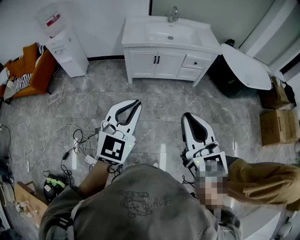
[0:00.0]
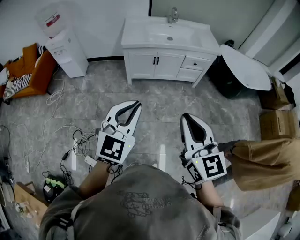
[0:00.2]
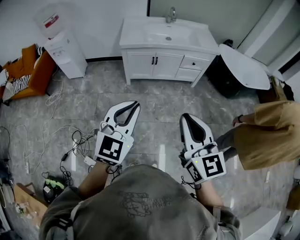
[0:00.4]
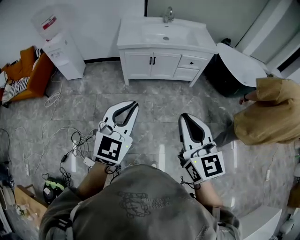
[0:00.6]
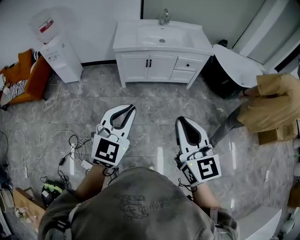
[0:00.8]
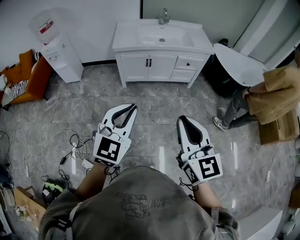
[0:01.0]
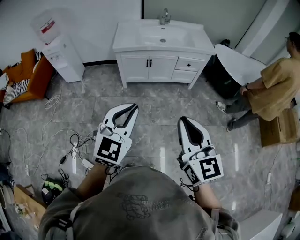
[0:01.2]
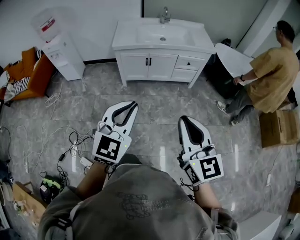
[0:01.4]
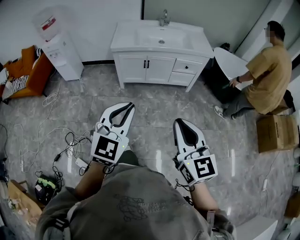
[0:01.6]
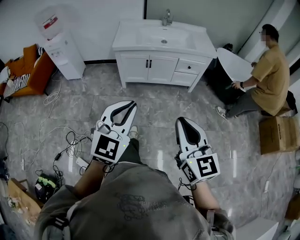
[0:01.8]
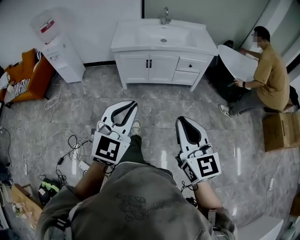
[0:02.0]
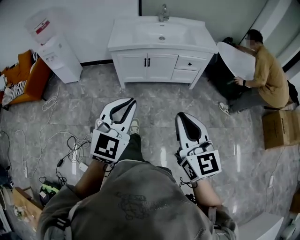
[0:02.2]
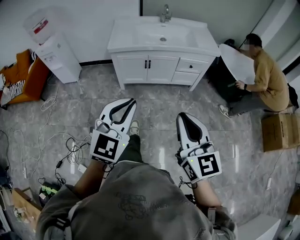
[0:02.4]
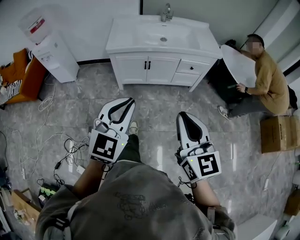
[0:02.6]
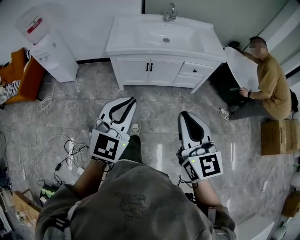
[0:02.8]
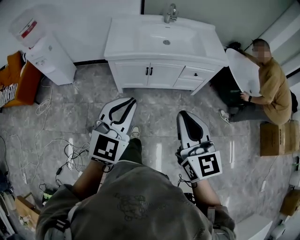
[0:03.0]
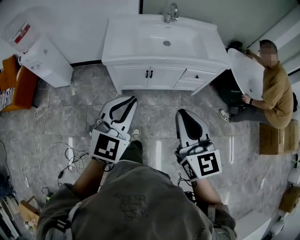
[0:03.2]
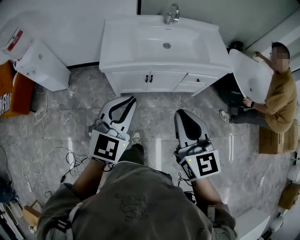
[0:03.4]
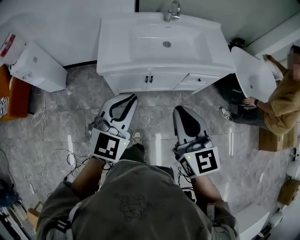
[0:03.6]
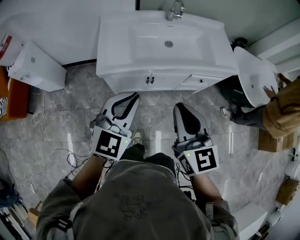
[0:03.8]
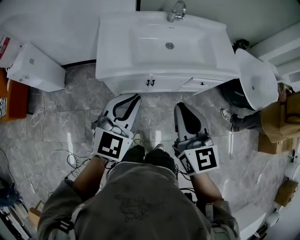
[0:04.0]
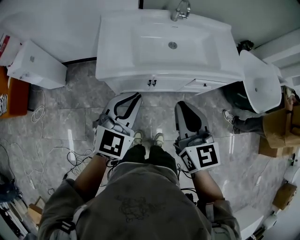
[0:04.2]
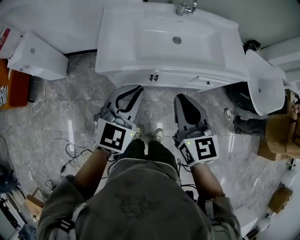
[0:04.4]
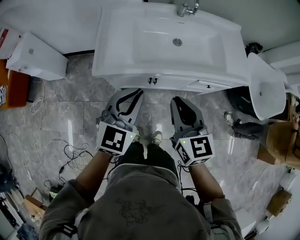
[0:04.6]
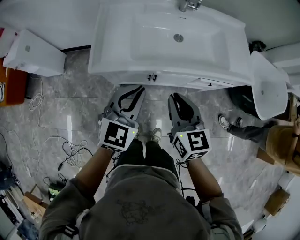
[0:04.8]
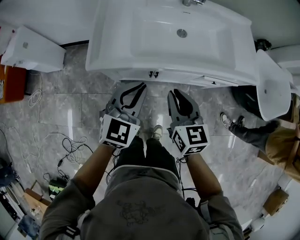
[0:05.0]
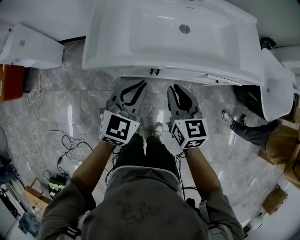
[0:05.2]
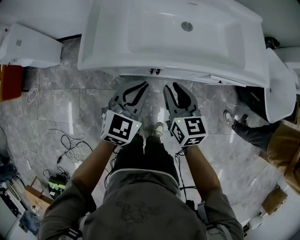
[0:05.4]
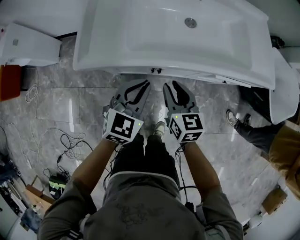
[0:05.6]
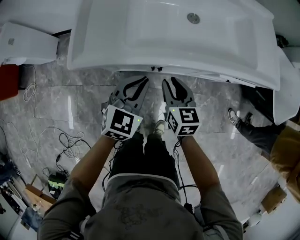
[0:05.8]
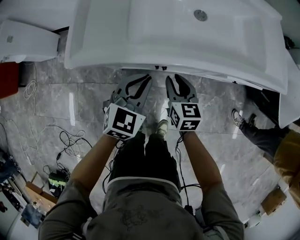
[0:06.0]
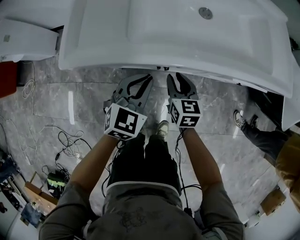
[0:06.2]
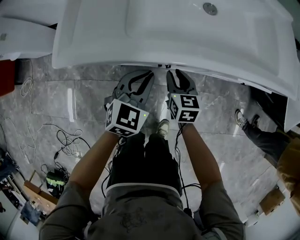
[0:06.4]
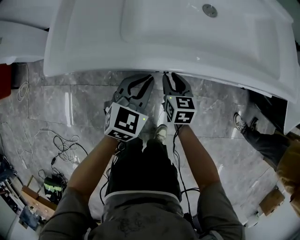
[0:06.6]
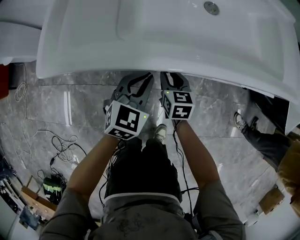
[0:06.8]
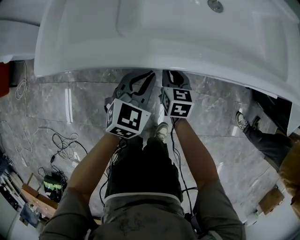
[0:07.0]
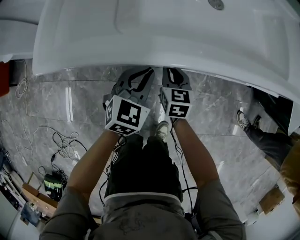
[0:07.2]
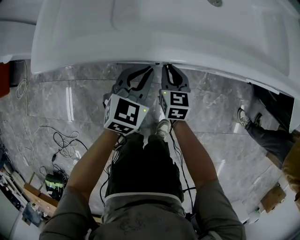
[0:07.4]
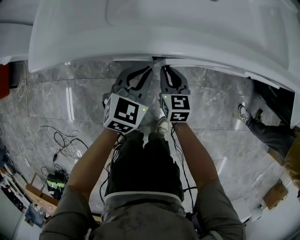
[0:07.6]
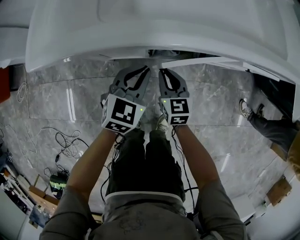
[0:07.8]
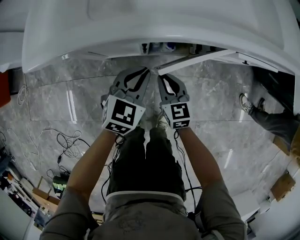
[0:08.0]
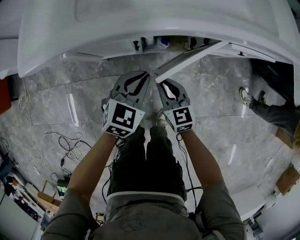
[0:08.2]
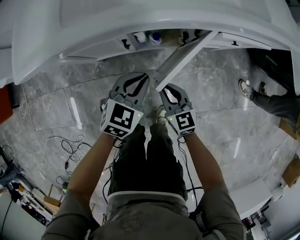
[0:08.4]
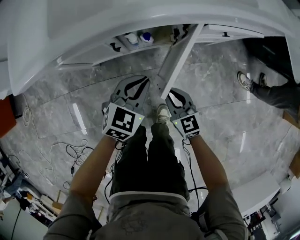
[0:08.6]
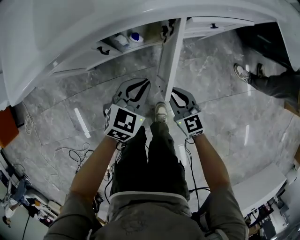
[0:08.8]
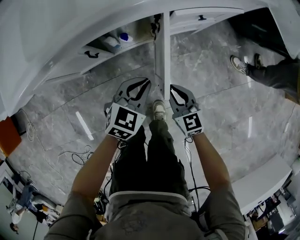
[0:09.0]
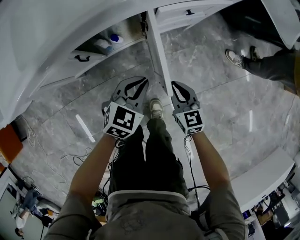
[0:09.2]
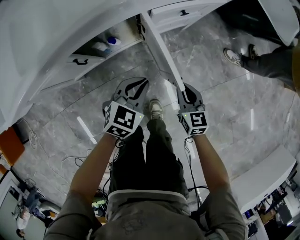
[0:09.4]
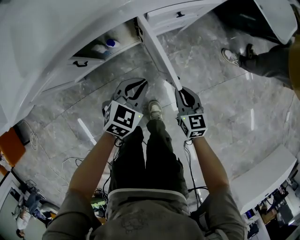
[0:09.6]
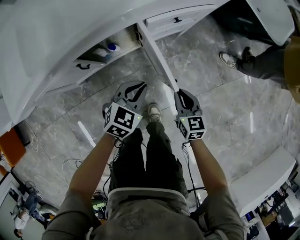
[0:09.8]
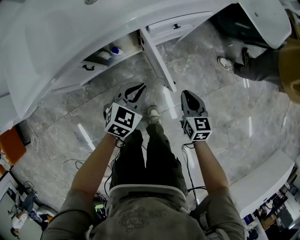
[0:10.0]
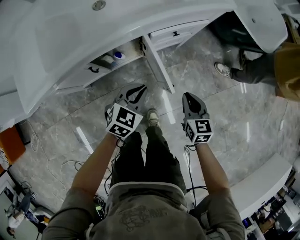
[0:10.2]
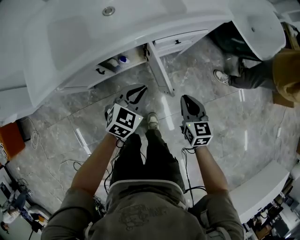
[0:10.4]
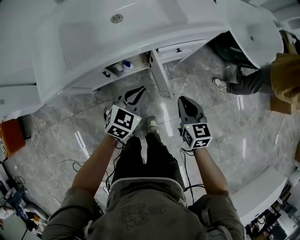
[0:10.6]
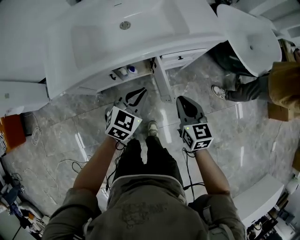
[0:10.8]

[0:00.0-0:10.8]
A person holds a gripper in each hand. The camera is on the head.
0:00.0 to 0:01.6: Both grippers travel together to the right, some 10 cm.
0:01.6 to 0:03.0: Both grippers move forward, roughly 30 cm.
0:03.0 to 0:04.6: Both grippers move forward, some 35 cm.
0:04.6 to 0:06.2: The grippers both shift downward by roughly 35 cm.
0:06.2 to 0:07.8: Both grippers move downward, about 10 cm.
0:07.8 to 0:09.2: The right gripper heads to the right and backward, covering approximately 30 cm. The left gripper travels to the right by about 20 cm, and turns by about 30 degrees.
0:09.2 to 0:10.8: Both grippers move upward, some 30 cm.

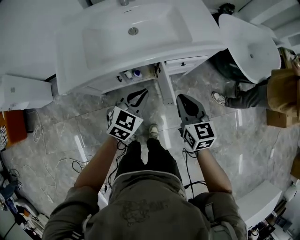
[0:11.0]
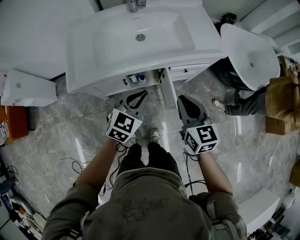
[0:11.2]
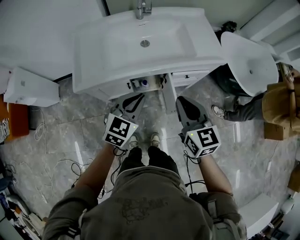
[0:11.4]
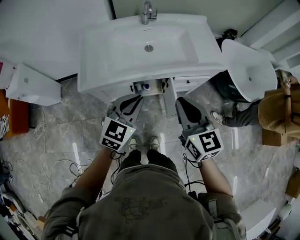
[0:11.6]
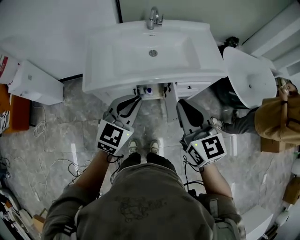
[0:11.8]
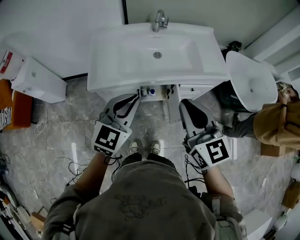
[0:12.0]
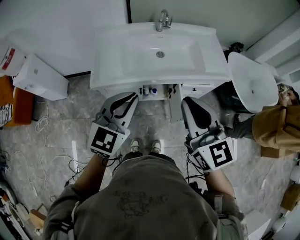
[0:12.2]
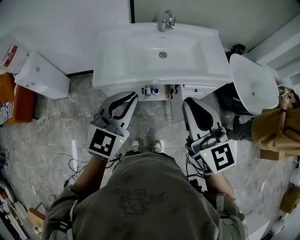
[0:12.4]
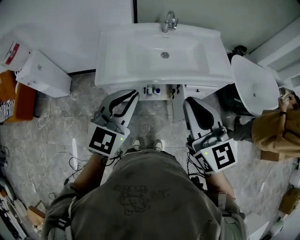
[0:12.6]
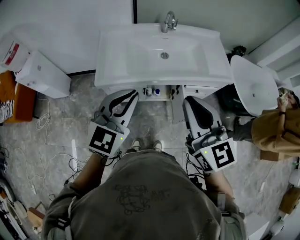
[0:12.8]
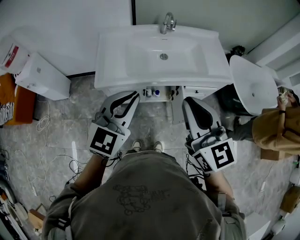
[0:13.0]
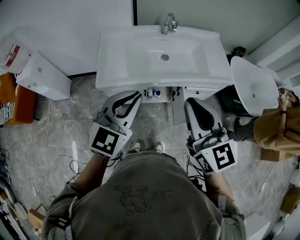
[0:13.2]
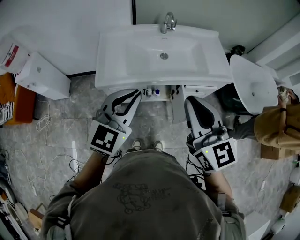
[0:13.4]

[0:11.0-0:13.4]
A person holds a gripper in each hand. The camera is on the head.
0:11.0 to 0:12.2: Both grippers move upward and to the left, about 30 cm. The left gripper changes its angle by some 20 degrees, while the right gripper swivels approximately 30 degrees.
0:12.2 to 0:13.4: The grippers make only small movements.

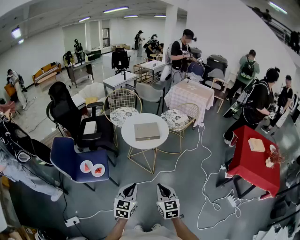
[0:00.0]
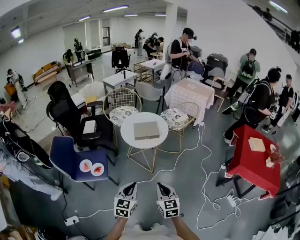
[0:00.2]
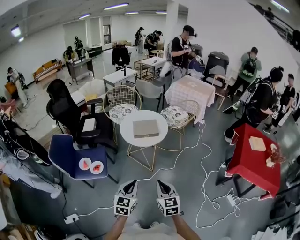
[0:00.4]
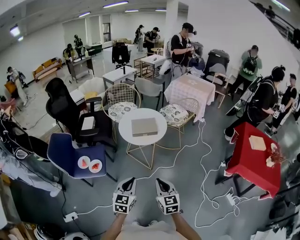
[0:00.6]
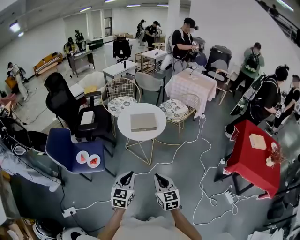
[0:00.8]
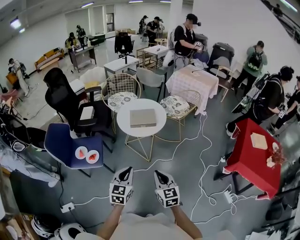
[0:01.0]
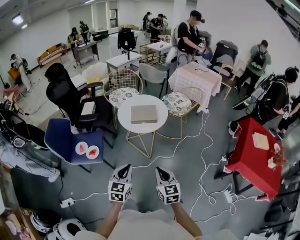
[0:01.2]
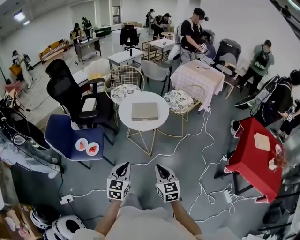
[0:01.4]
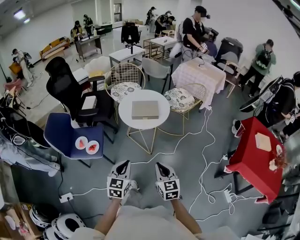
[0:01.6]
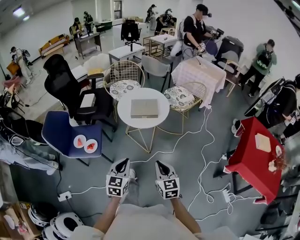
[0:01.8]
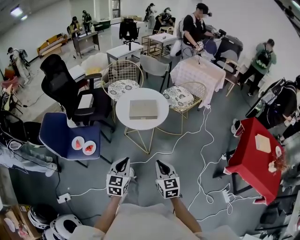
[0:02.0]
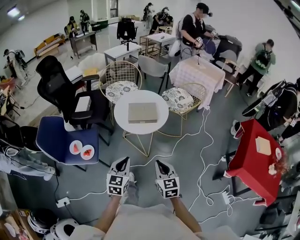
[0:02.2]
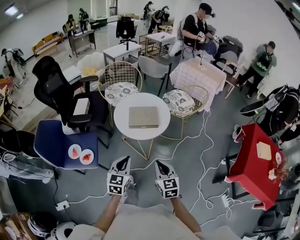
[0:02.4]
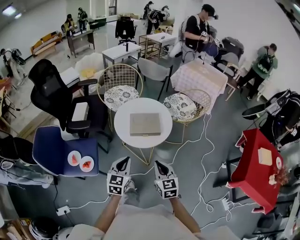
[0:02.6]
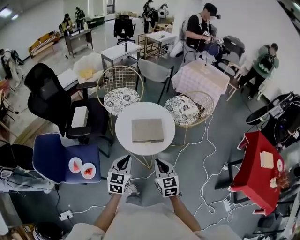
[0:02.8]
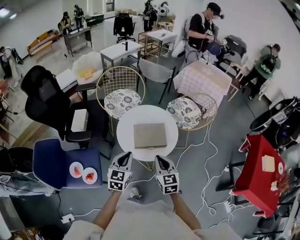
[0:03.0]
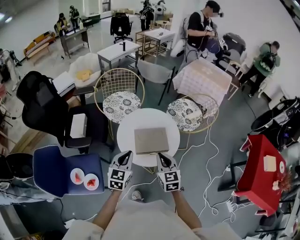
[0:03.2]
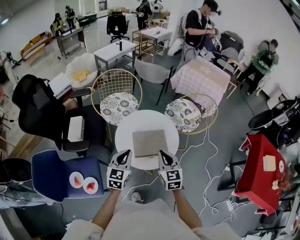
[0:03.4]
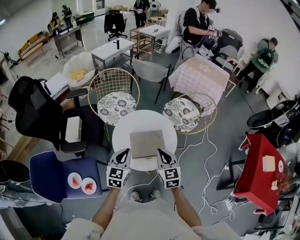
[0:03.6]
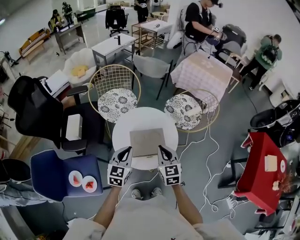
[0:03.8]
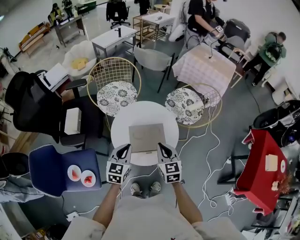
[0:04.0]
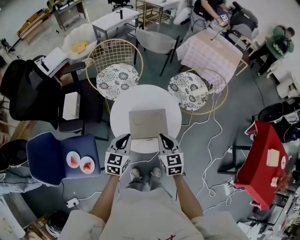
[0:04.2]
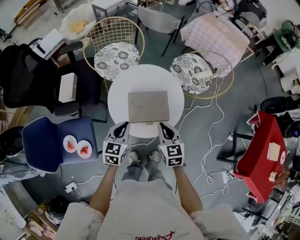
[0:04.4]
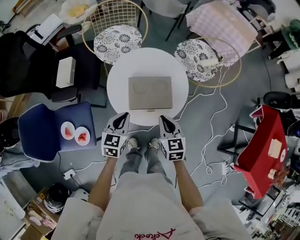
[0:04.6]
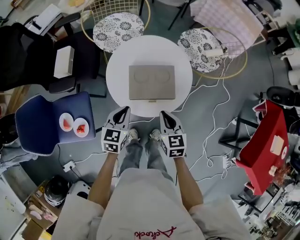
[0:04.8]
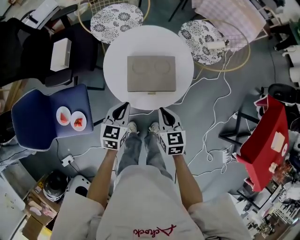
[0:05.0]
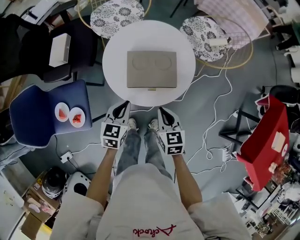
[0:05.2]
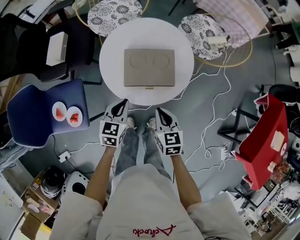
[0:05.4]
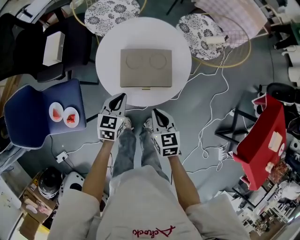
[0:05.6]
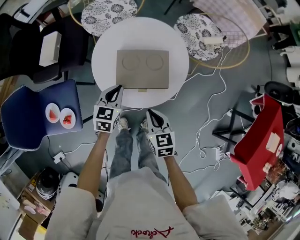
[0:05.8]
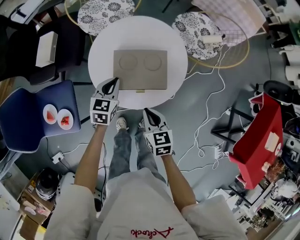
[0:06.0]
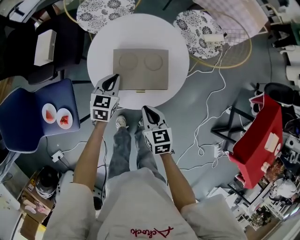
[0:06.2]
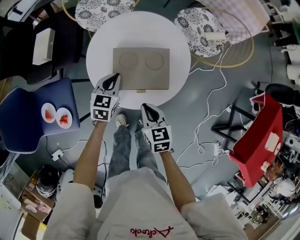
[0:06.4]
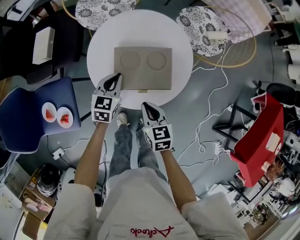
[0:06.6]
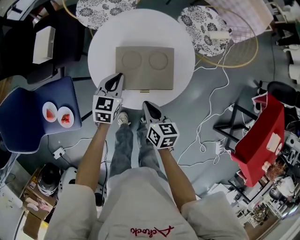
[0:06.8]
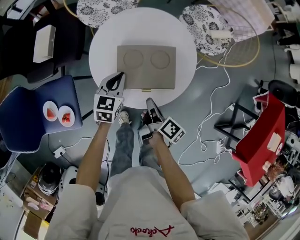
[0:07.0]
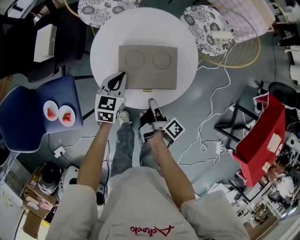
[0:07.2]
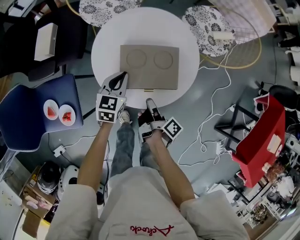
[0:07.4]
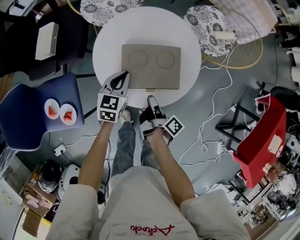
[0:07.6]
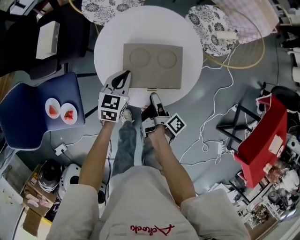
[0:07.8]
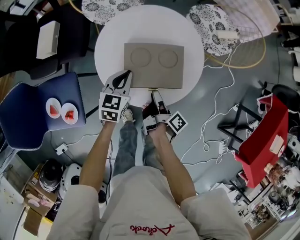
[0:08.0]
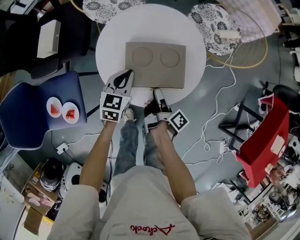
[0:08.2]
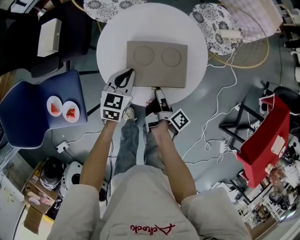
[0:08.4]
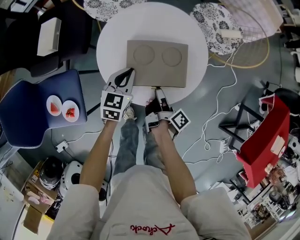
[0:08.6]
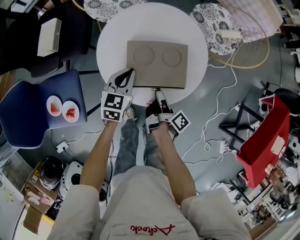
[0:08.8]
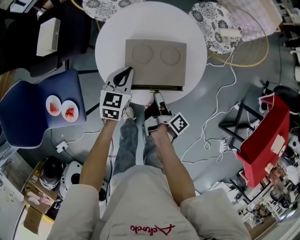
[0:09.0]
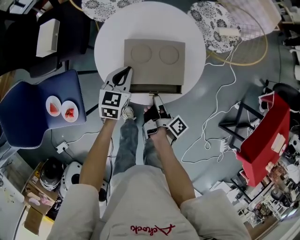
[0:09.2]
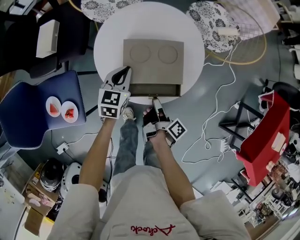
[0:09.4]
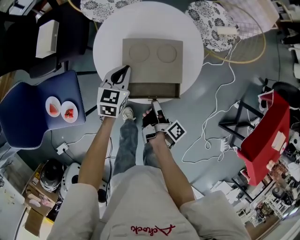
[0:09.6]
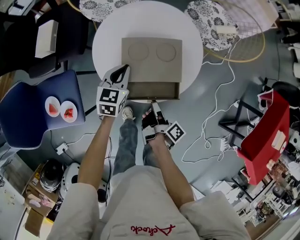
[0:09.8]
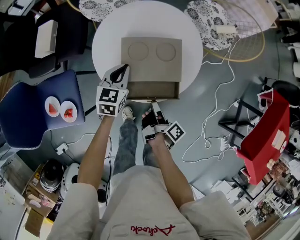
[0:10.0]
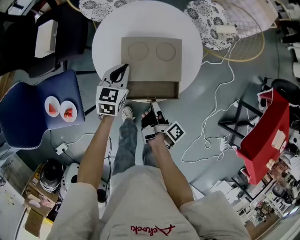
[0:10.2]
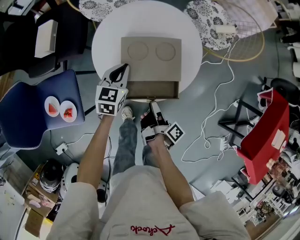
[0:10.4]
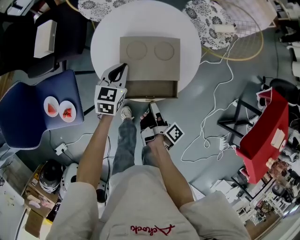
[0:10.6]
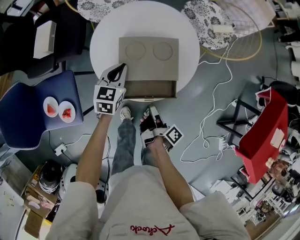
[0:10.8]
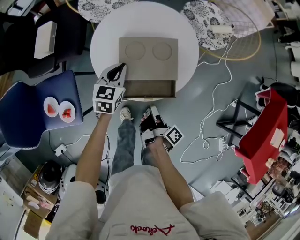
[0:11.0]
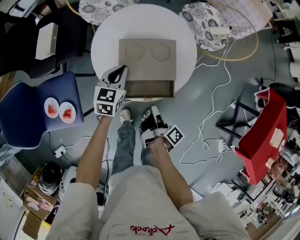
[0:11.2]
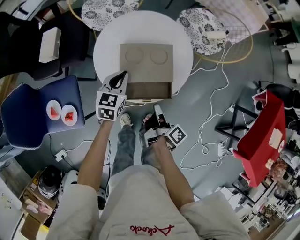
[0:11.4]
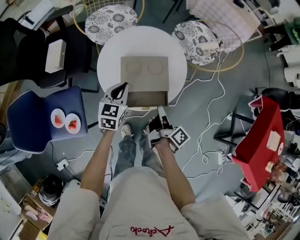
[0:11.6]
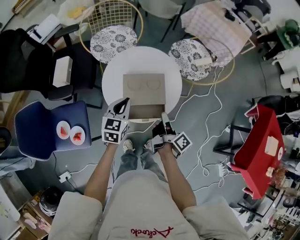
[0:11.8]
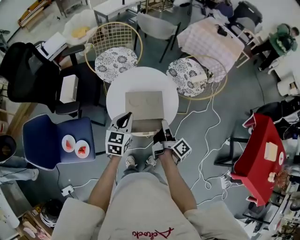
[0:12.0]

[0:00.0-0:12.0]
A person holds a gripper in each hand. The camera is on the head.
0:00.0 to 0:01.6: The right gripper goes some 10 cm to the right and forward. Meanwhile the left gripper travels forward by roughly 5 cm.
0:01.6 to 0:03.0: Both grippers travel together forward, roughly 35 cm.
0:03.0 to 0:04.4: The two grippers go approximately 15 cm forward and downward.
0:04.4 to 0:06.0: The left gripper moves downward and forward, roughly 15 cm. Meanwhile the right gripper heads downward and backward, covering about 15 cm.
0:06.0 to 0:07.6: The right gripper moves downward, roughly 5 cm, and rotates around the line of its fingers by about 90 degrees, clockwise from behind.
0:07.6 to 0:09.0: The grippers move only a little.
0:09.0 to 0:10.4: The right gripper goes about 5 cm backward.
0:10.4 to 0:12.0: Both grippers move upward, about 20 cm. The right gripper rotates about 20 degrees, and closes up.
